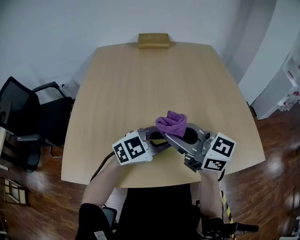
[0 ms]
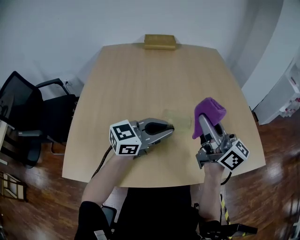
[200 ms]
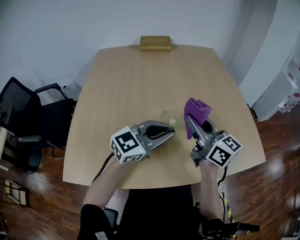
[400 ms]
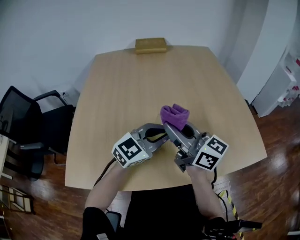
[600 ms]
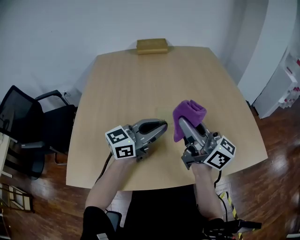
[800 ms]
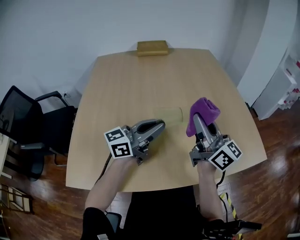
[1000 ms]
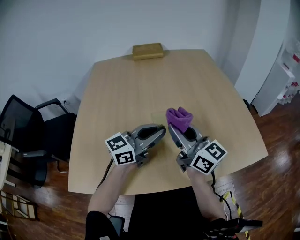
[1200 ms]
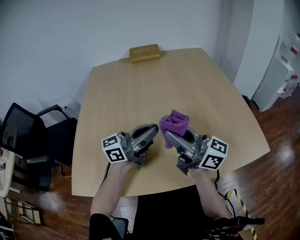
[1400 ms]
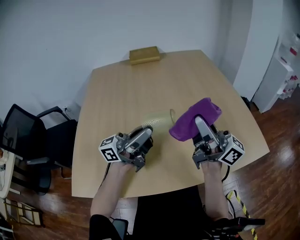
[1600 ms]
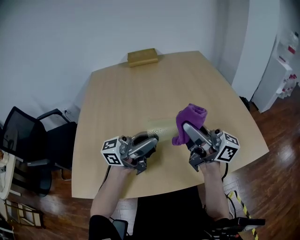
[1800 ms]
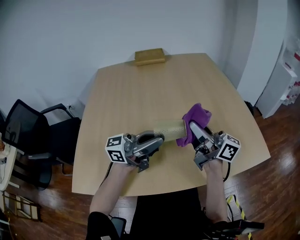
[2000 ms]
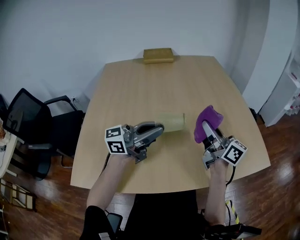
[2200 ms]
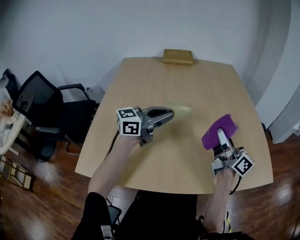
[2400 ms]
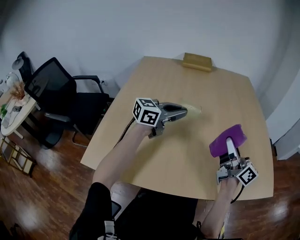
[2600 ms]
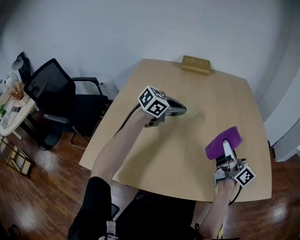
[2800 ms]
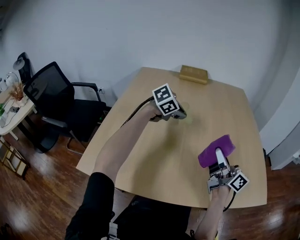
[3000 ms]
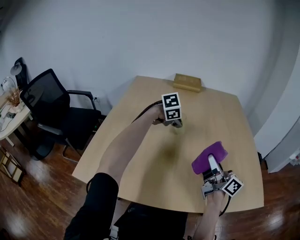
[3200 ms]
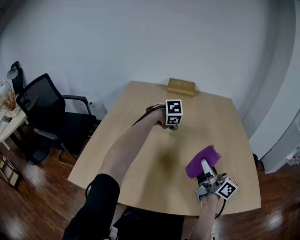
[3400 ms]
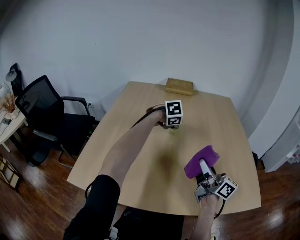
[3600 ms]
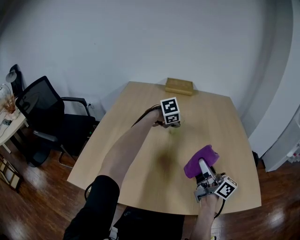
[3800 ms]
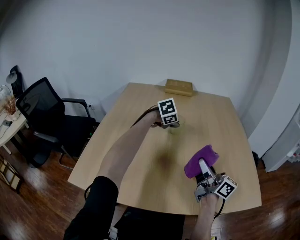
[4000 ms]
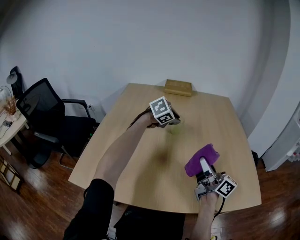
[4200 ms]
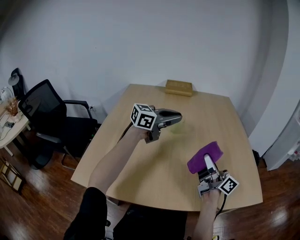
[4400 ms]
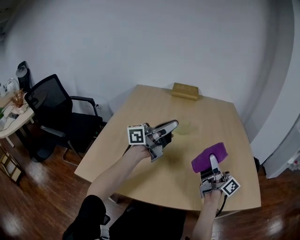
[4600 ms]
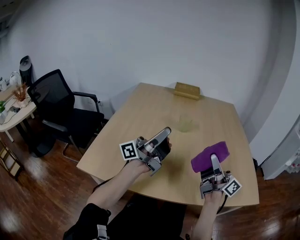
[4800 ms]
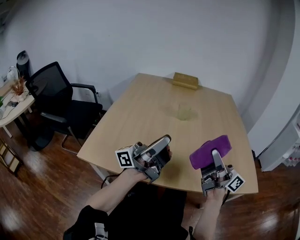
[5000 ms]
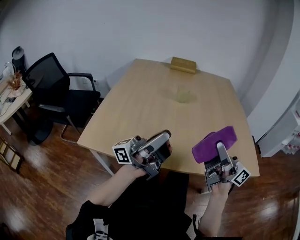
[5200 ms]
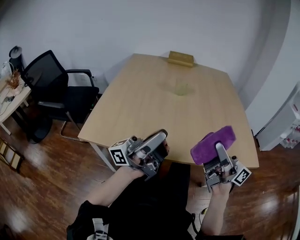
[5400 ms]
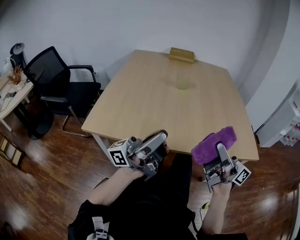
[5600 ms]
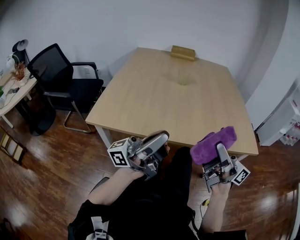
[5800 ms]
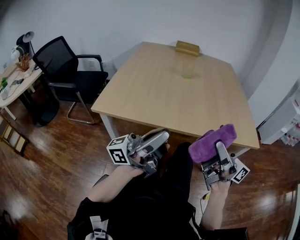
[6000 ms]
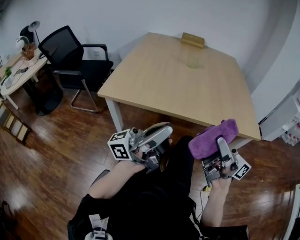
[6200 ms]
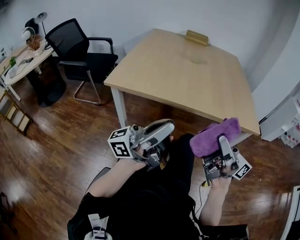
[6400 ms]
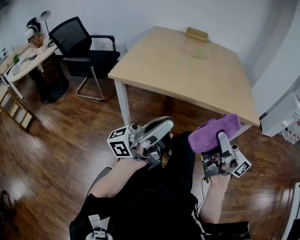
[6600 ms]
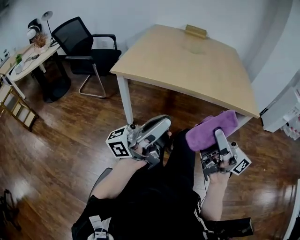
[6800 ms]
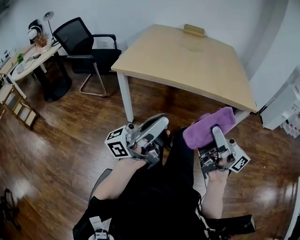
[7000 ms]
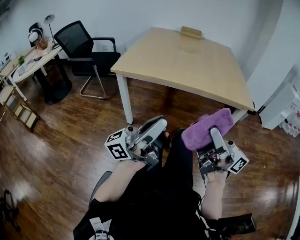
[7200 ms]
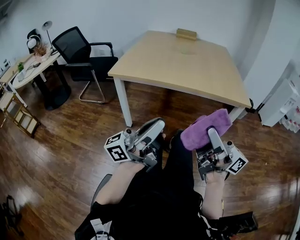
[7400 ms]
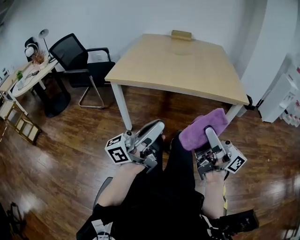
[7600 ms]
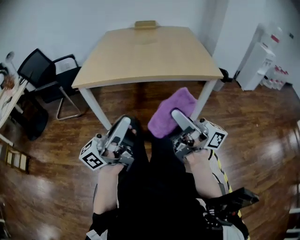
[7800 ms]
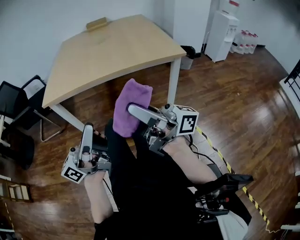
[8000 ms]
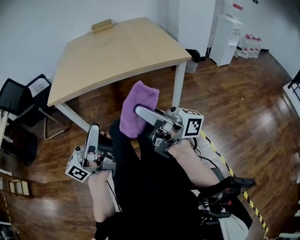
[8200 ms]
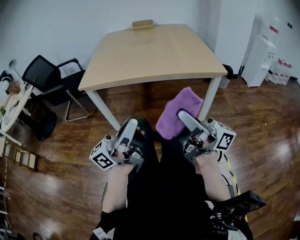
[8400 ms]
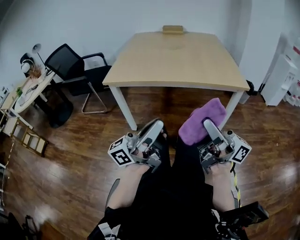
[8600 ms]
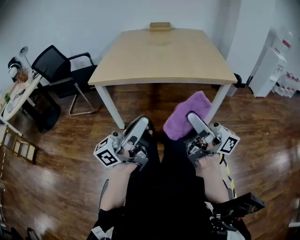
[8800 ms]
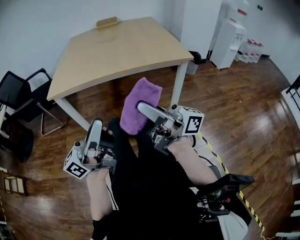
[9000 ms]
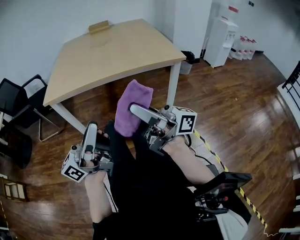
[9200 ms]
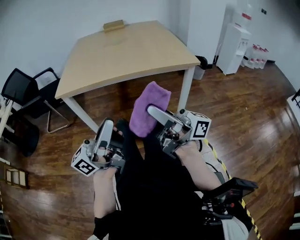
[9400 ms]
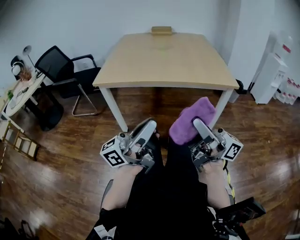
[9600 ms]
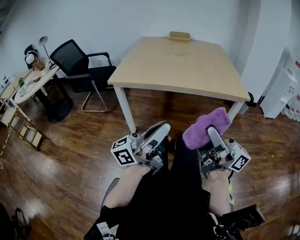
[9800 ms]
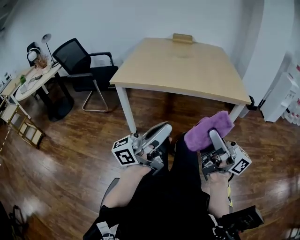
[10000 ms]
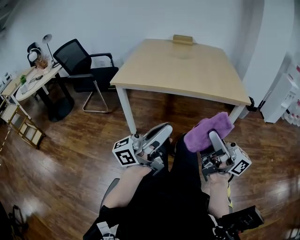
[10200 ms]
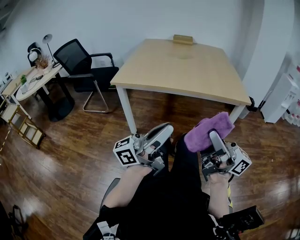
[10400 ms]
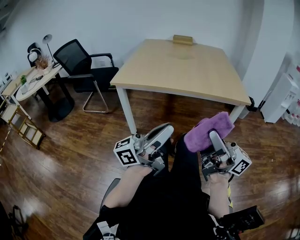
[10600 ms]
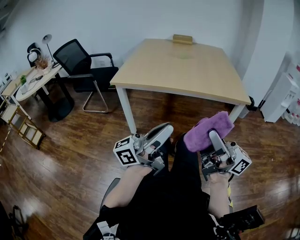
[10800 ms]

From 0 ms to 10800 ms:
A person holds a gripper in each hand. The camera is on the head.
From 0 ms to 1600 ms: The left gripper heads upward, covering some 10 cm, and tips its fingers upward by about 50 degrees; the right gripper shifts by approximately 15 cm, and tips its fingers upward by roughly 30 degrees.
From 1600 ms to 3000 ms: The right gripper is displaced downward by approximately 10 cm; the left gripper shifts by some 20 cm, and points its fingers approximately 80 degrees further downward.
From 3000 ms to 4600 ms: The left gripper goes roughly 15 cm upward and backward, and tips its fingers upward by some 70 degrees.
From 4600 ms to 6200 ms: The two grippers go some 40 cm backward. The right gripper swivels about 20 degrees.
From 6200 ms to 7800 ms: The two grippers go some 15 cm backward.
From 7800 ms to 10800 ms: The grippers move only a little.

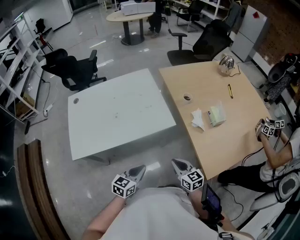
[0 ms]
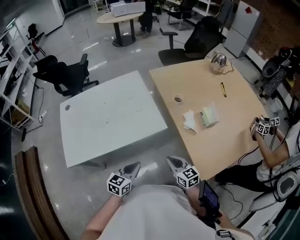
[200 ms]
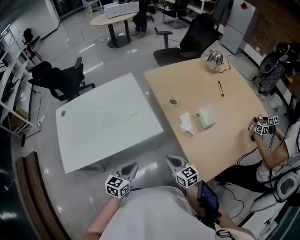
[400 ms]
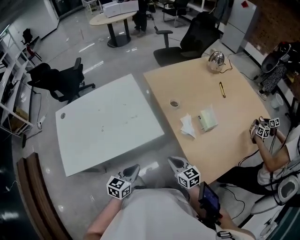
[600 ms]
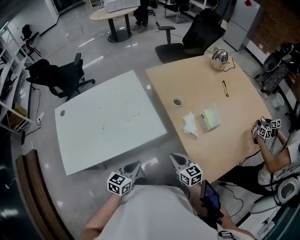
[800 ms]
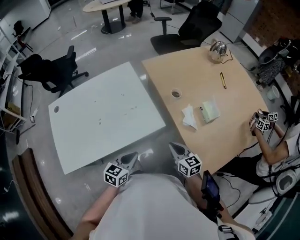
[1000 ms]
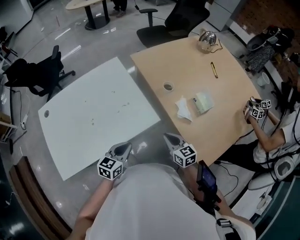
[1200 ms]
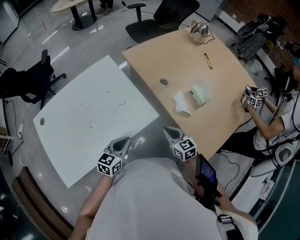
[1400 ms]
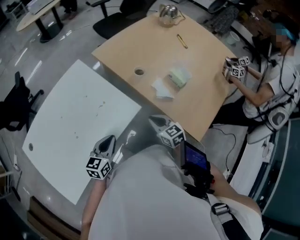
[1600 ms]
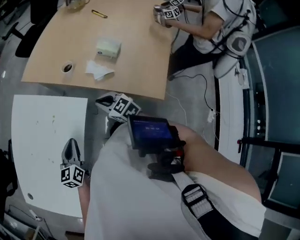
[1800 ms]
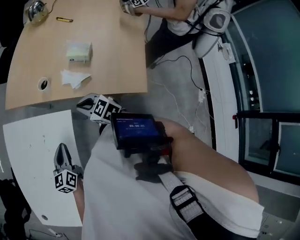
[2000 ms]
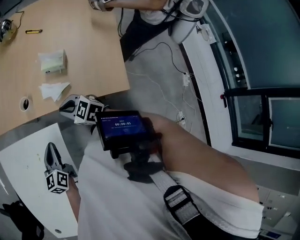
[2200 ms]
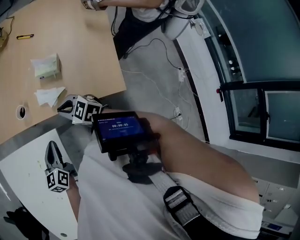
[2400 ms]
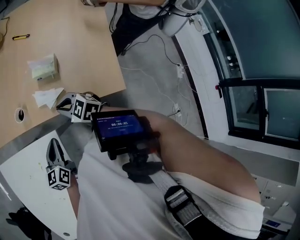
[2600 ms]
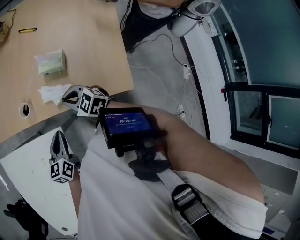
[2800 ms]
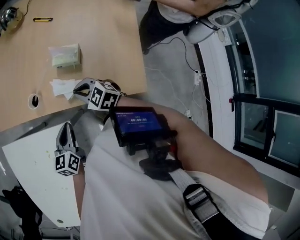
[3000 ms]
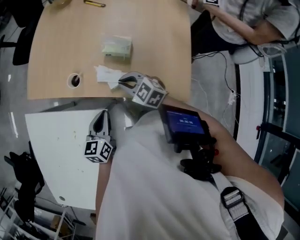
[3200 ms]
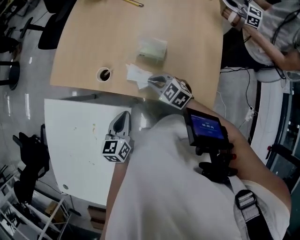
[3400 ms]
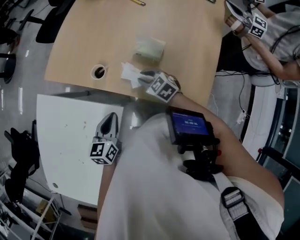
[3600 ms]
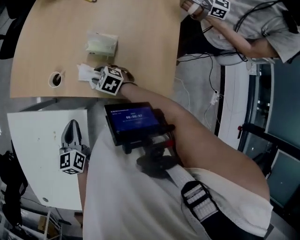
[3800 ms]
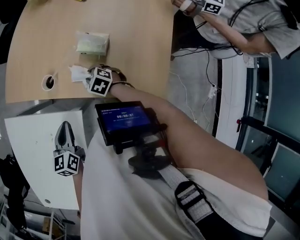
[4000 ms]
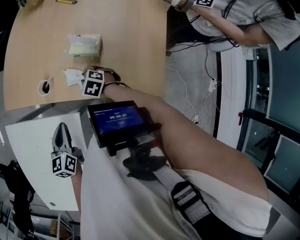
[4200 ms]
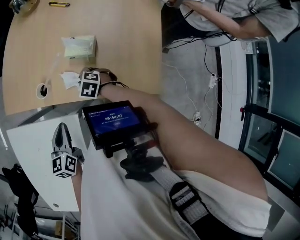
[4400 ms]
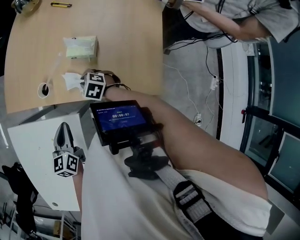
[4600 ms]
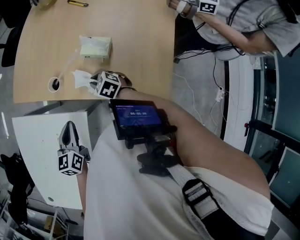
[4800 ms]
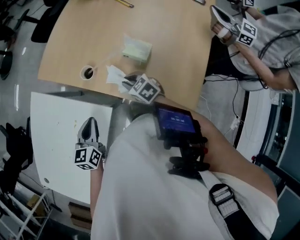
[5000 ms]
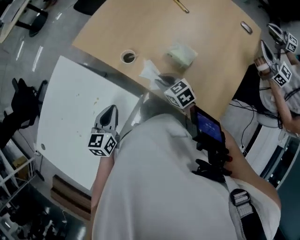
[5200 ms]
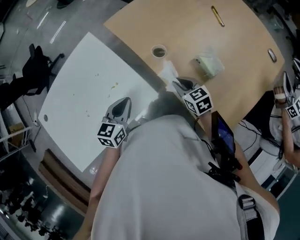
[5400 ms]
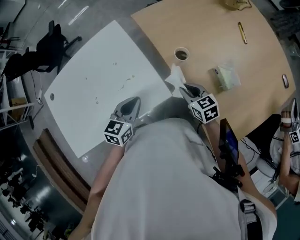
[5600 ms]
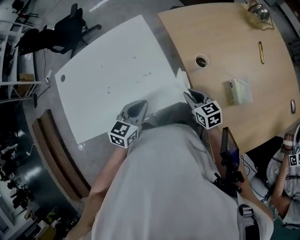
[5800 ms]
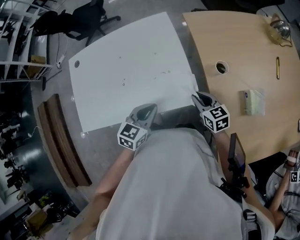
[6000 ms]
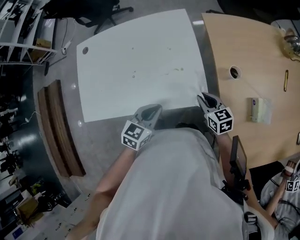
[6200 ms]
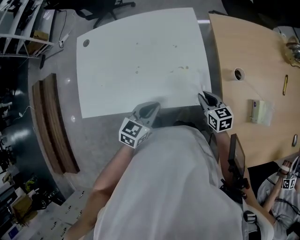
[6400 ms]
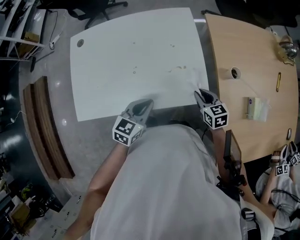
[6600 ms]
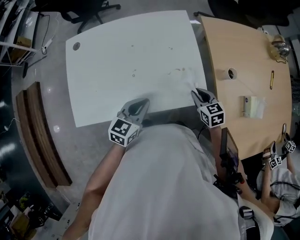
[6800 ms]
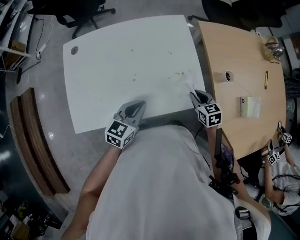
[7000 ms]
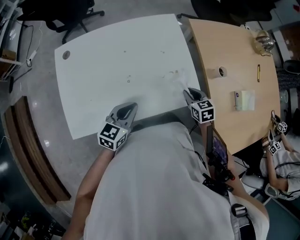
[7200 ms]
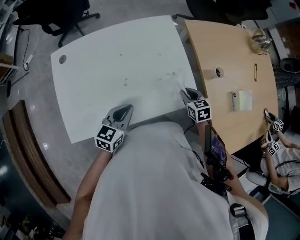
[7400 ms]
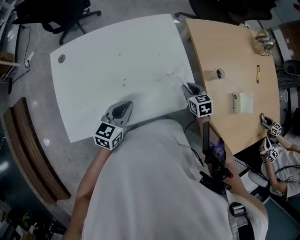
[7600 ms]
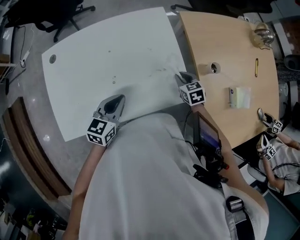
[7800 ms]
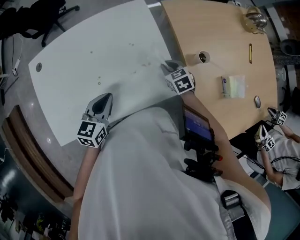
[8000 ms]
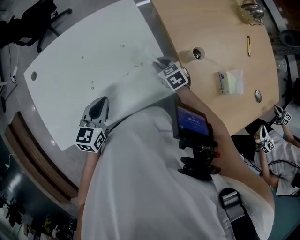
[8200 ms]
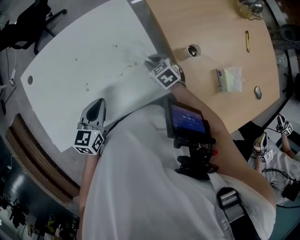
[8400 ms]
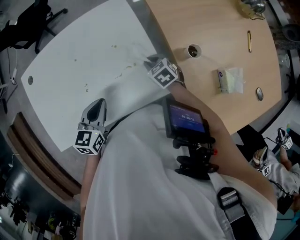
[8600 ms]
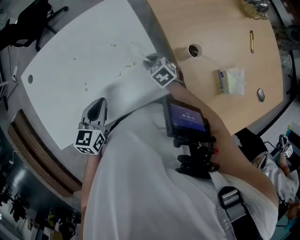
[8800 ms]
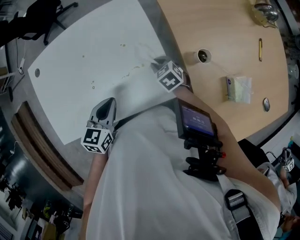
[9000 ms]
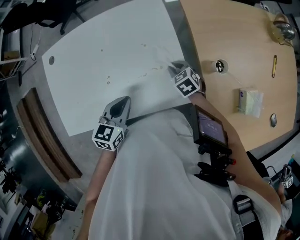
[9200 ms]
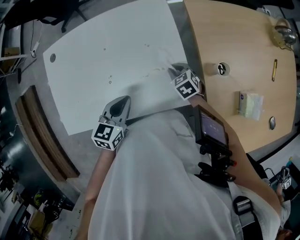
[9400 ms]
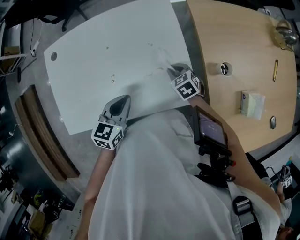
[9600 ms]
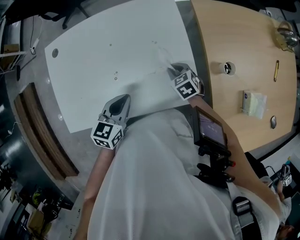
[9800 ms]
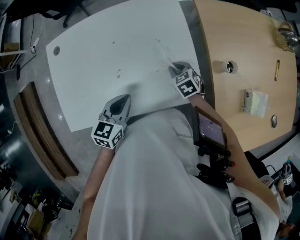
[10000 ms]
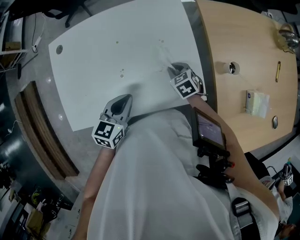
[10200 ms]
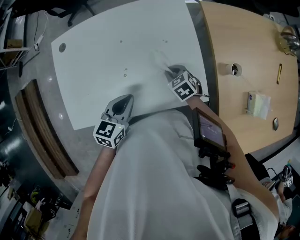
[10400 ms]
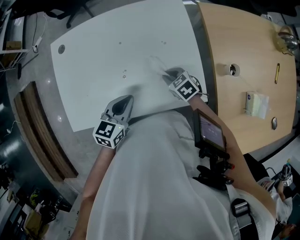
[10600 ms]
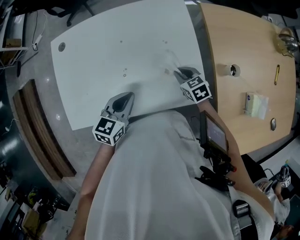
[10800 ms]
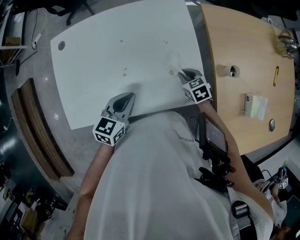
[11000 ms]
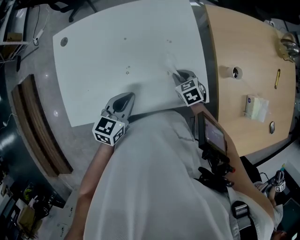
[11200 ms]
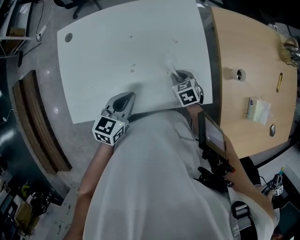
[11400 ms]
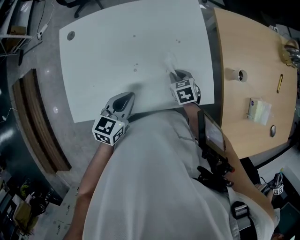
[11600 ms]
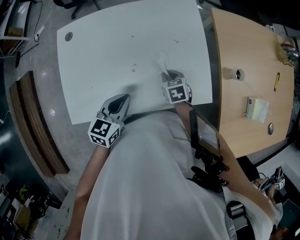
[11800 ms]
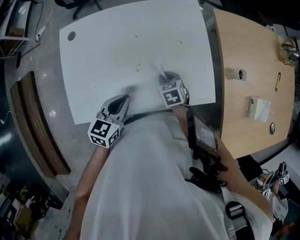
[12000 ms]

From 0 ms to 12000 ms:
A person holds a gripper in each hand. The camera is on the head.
From 0 ms to 1600 ms: The two grippers go some 20 cm forward.
From 1600 ms to 3000 ms: The right gripper shifts about 15 cm forward and to the right; the left gripper moves forward and to the right, approximately 25 cm, and swivels roughly 30 degrees.
From 3000 ms to 4400 ms: The right gripper moves downward and forward, roughly 15 cm, and changes its angle by roughly 20 degrees. The left gripper goes about 5 cm to the left.
From 4400 ms to 6000 ms: The left gripper moves some 20 cm, and rotates approximately 40 degrees, while the right gripper moves approximately 20 cm, and rotates some 40 degrees.
From 6000 ms to 7600 ms: The right gripper shifts roughly 10 cm to the left and forward, and changes its angle by some 20 degrees. Meanwhile the left gripper heads to the left, covering approximately 15 cm.
From 7600 ms to 9000 ms: The right gripper goes roughly 10 cm forward and downward, and turns by some 20 degrees; the left gripper travels to the right by some 10 cm.
From 9000 ms to 10400 ms: Both grippers move to the left, approximately 10 cm.
From 10400 ms to 12000 ms: Both grippers move to the left, approximately 5 cm.

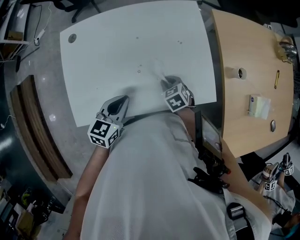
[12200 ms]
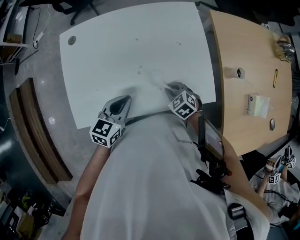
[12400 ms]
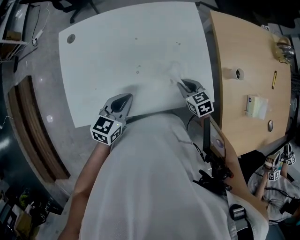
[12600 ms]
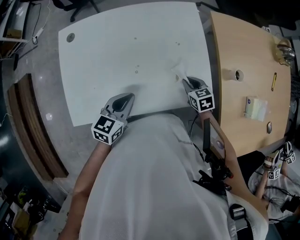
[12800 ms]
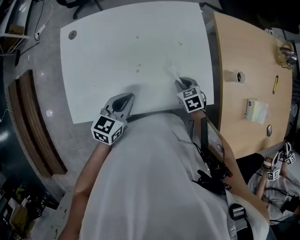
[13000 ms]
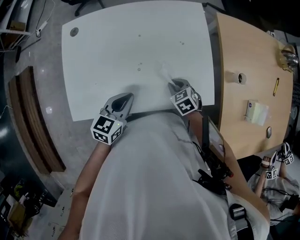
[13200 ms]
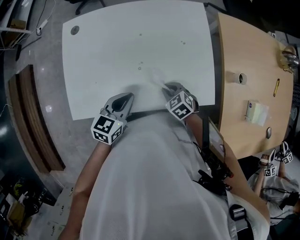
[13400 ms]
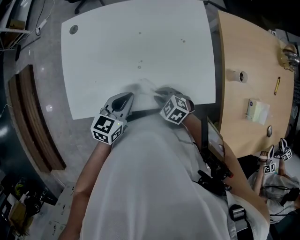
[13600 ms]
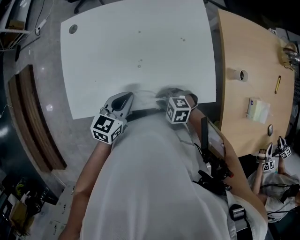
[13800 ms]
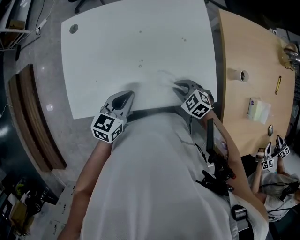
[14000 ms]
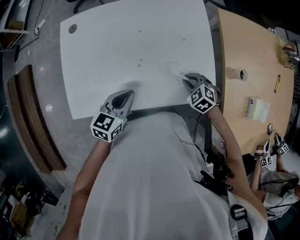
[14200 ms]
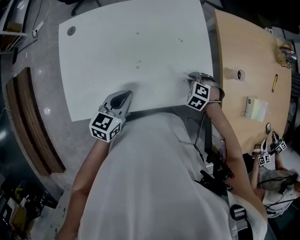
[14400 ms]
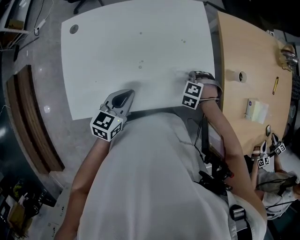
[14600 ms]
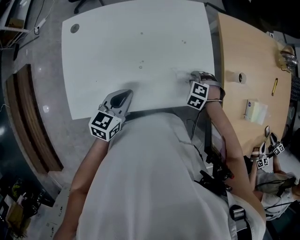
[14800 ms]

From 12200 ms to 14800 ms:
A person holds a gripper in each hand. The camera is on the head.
From 12200 ms to 13400 ms: The right gripper moves roughly 10 cm to the right and comes back.
From 13400 ms to 14800 ms: The right gripper shifts by roughly 15 cm, and changes its angle by roughly 40 degrees.
